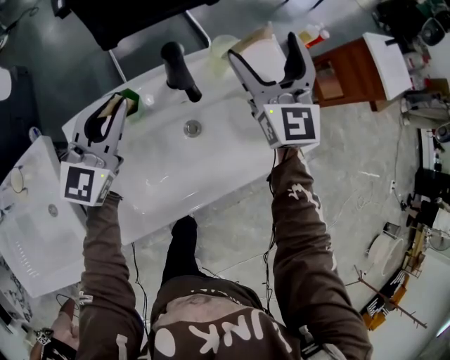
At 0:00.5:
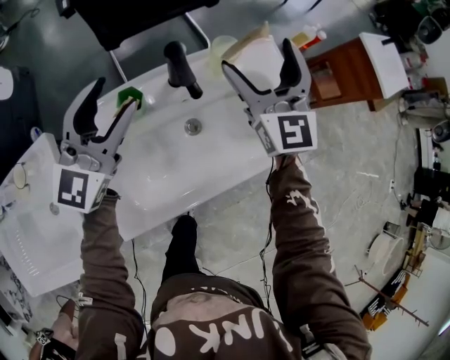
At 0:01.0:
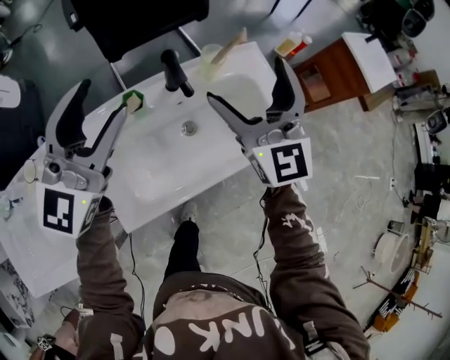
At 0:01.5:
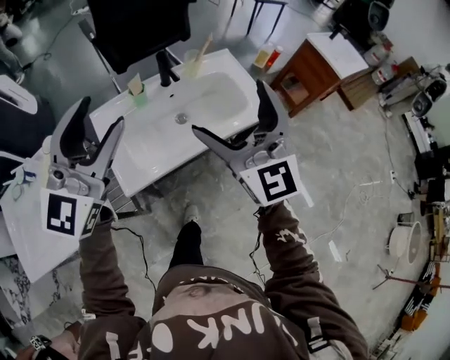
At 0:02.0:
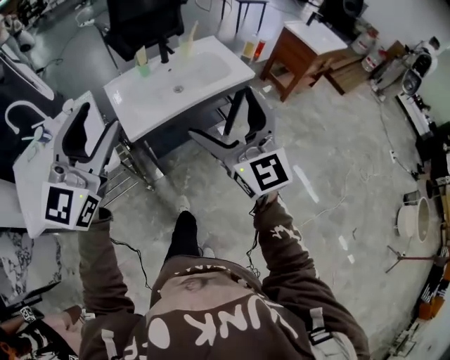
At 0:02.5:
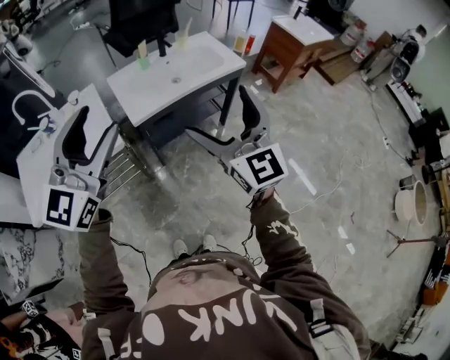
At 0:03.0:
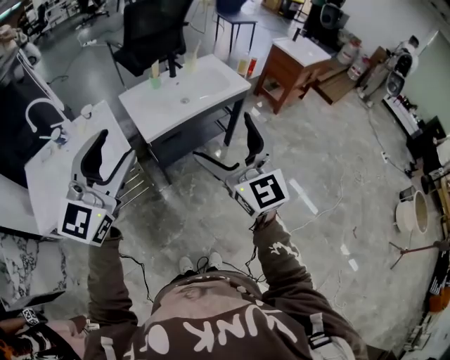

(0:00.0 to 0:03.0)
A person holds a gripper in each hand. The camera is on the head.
0:00.0 - 0:01.5: The two grippers go approximately 40 cm backward and upward. The left gripper opens its fingers.
0:01.5 - 0:03.0: Both grippers are carried backward, roughly 40 cm.

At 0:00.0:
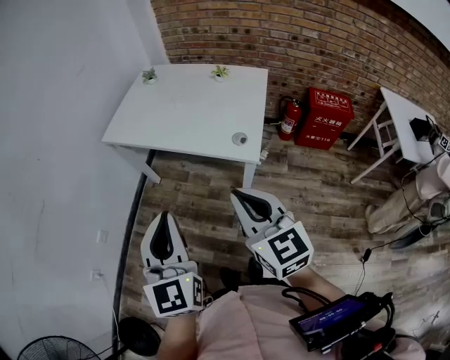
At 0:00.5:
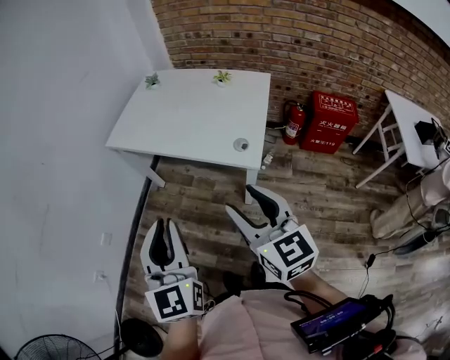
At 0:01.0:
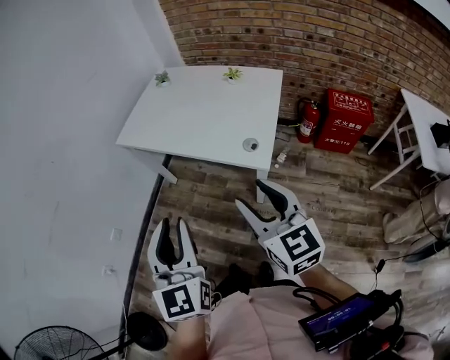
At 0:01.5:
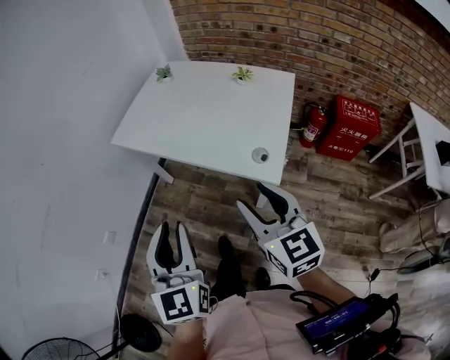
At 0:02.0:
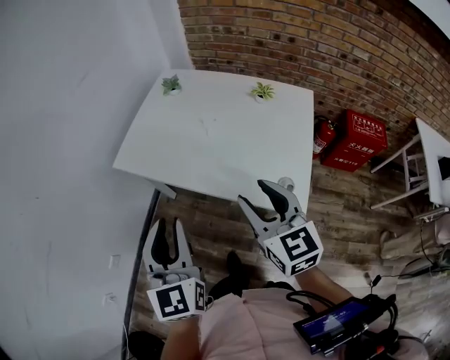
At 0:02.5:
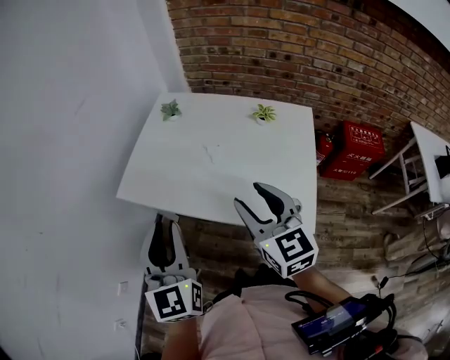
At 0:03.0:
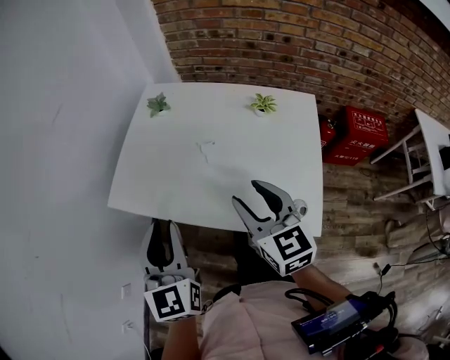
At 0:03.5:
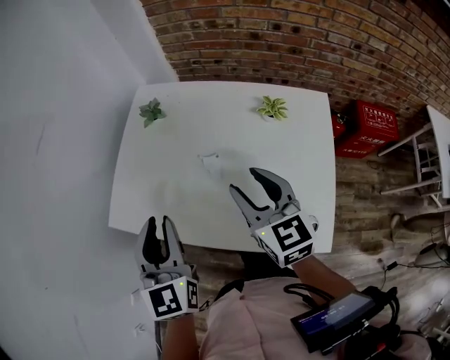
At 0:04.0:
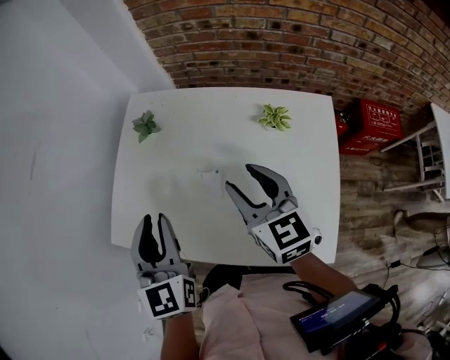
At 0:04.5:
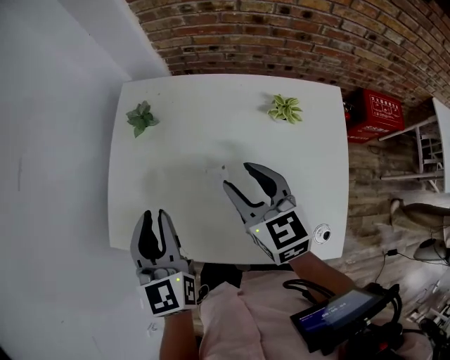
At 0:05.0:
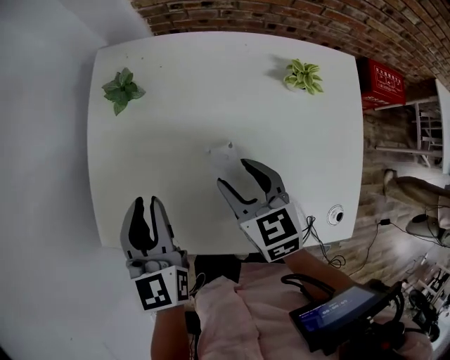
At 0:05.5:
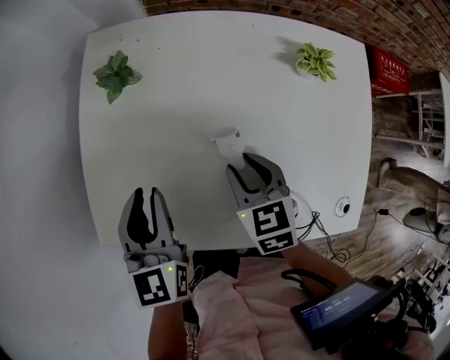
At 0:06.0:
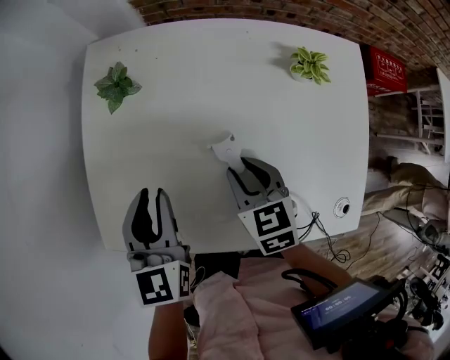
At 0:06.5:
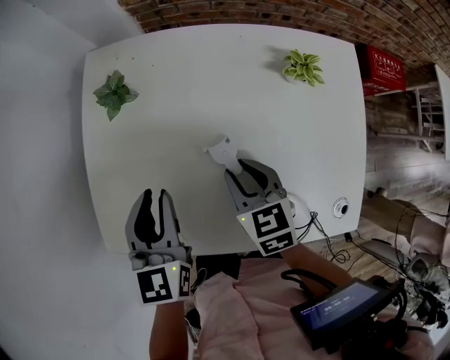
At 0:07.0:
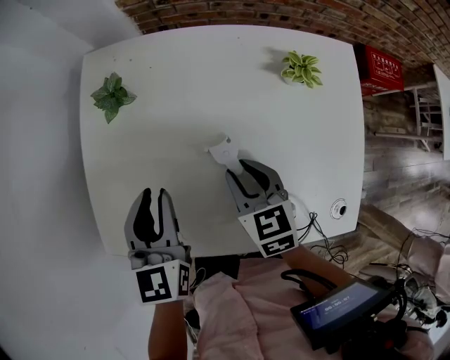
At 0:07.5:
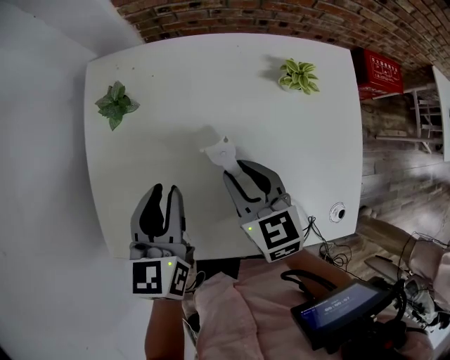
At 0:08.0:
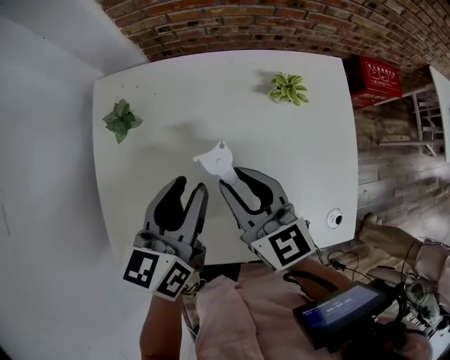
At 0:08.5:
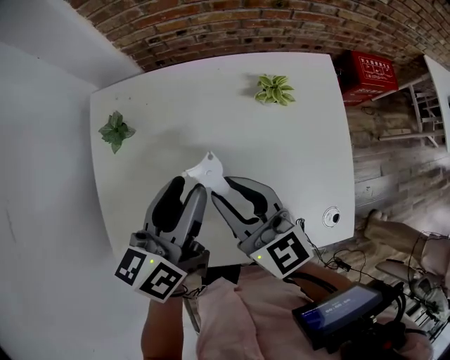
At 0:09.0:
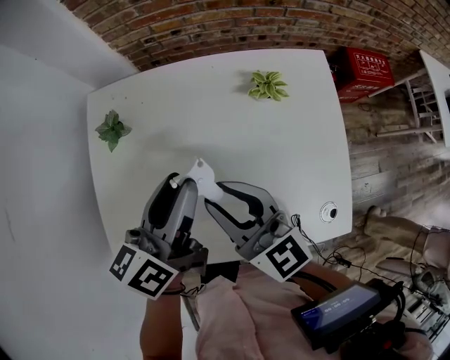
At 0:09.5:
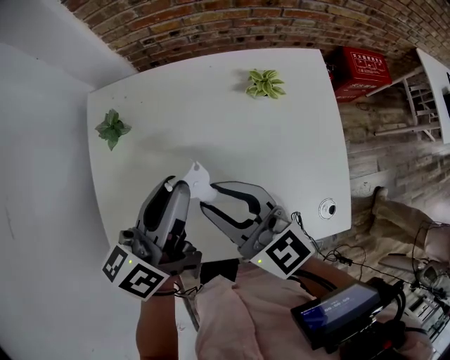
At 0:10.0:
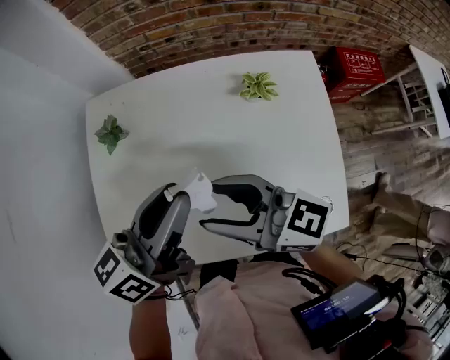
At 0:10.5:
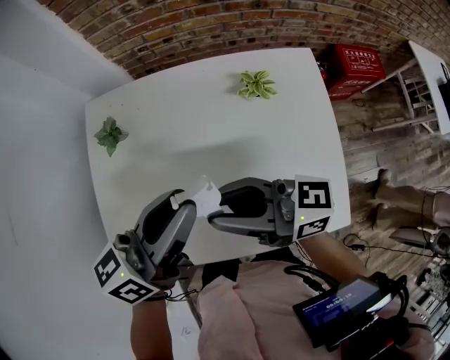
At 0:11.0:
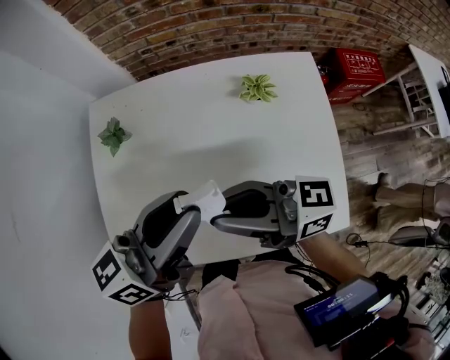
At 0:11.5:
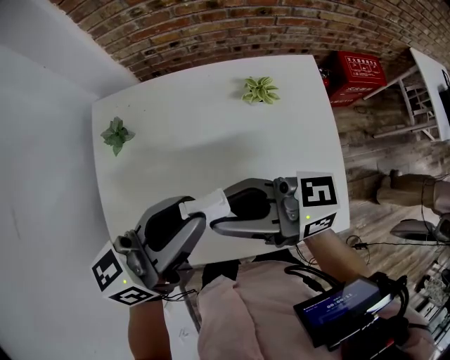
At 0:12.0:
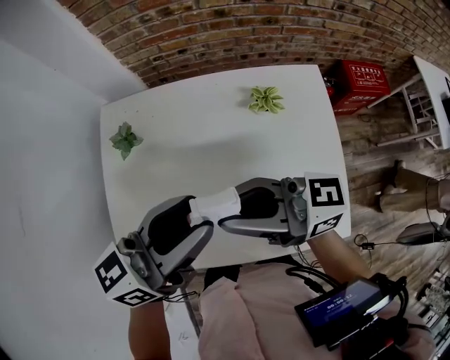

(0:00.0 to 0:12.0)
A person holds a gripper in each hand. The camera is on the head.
0:00.0 - 0:02.0: The grippers both shift forward by approximately 25 cm. The right gripper opens; the left gripper opens.
0:02.0 - 0:04.0: The two grippers go about 30 cm forward.
0:04.0 - 0:06.0: The right gripper heads downward, covering about 15 cm, and turns by some 30 degrees. Meanwhile the left gripper moves downward and forward, approximately 15 cm, and turns by about 20 degrees.
0:06.0 - 0:08.0: The left gripper is displaced to the right by about 10 cm, and rotates about 30 degrees; the right gripper shifts about 10 cm upward, and swivels roughly 30 degrees.
0:08.0 - 0:10.0: The left gripper moves upward, about 10 cm, and rotates roughly 20 degrees. Meanwhile the right gripper heads upward and backward, covering approximately 10 cm, and turns by approximately 40 degrees.
0:10.0 - 0:12.0: The right gripper rotates about 20 degrees, and closes.

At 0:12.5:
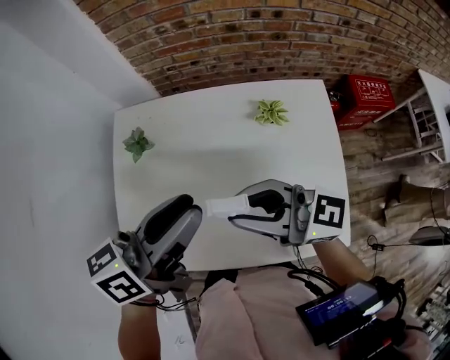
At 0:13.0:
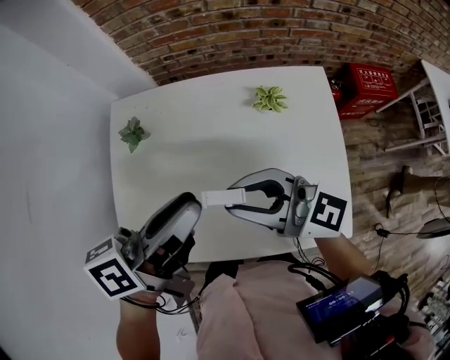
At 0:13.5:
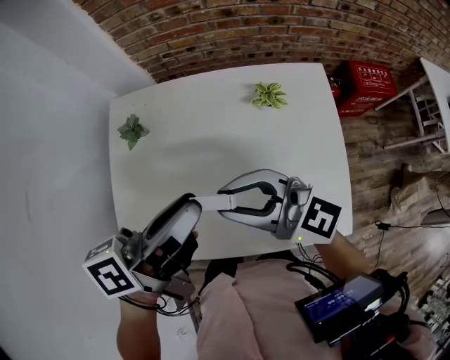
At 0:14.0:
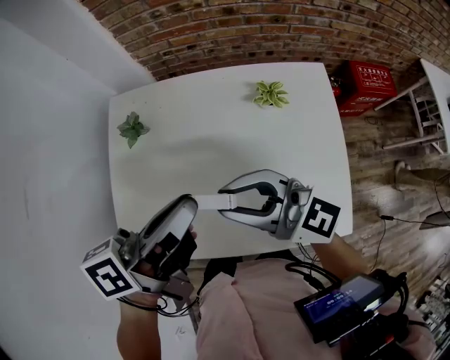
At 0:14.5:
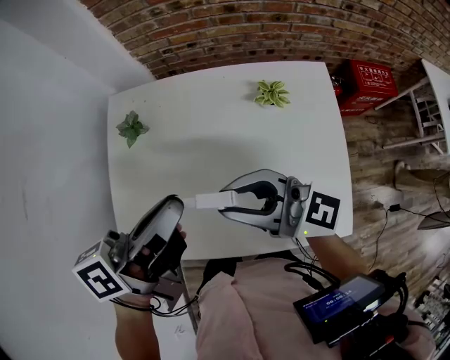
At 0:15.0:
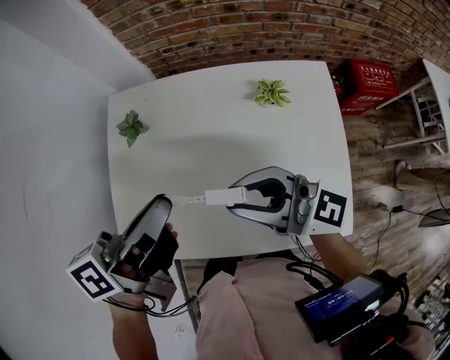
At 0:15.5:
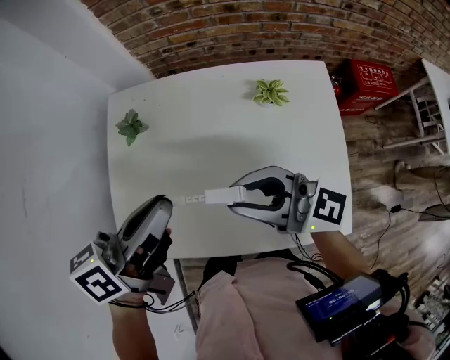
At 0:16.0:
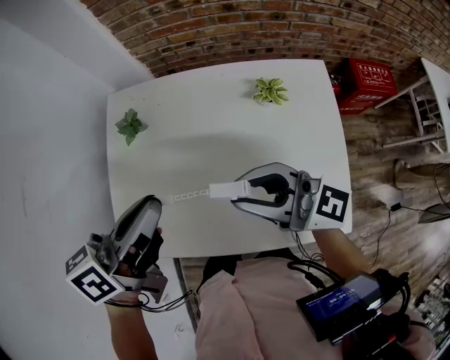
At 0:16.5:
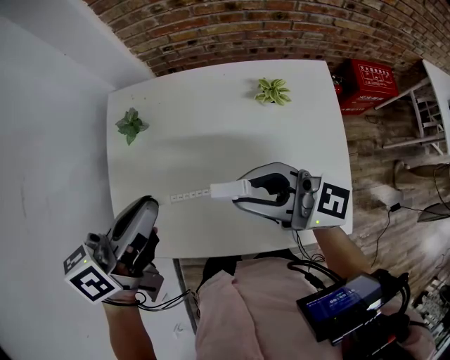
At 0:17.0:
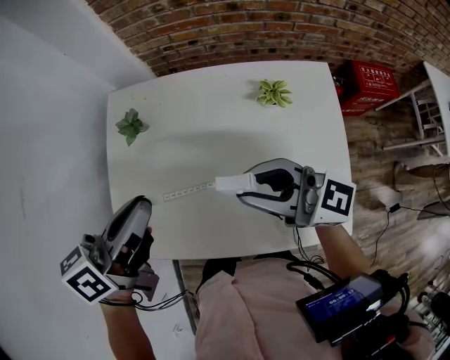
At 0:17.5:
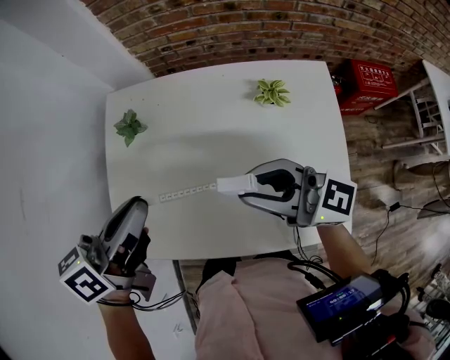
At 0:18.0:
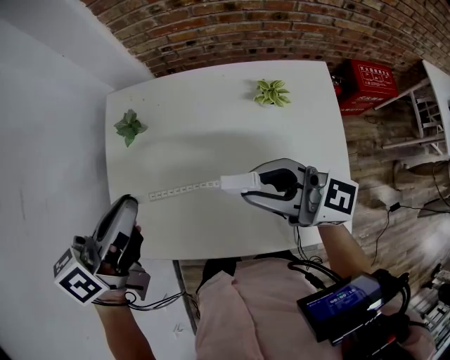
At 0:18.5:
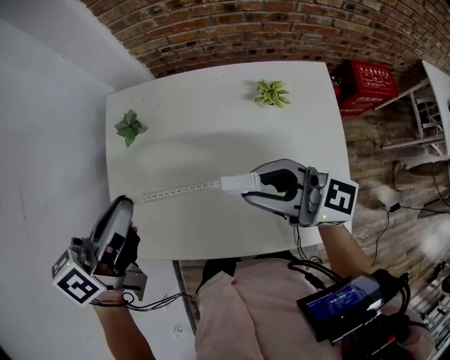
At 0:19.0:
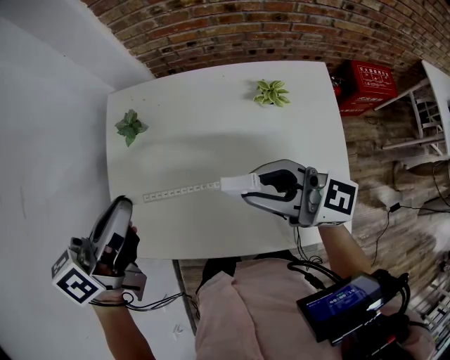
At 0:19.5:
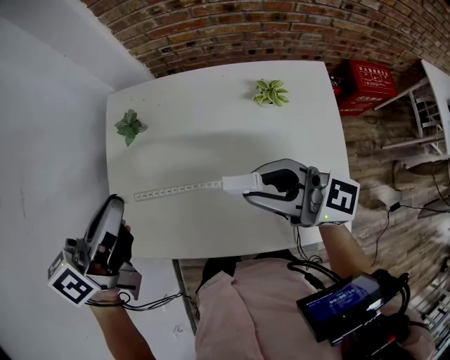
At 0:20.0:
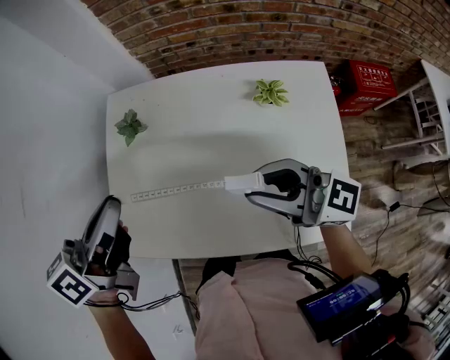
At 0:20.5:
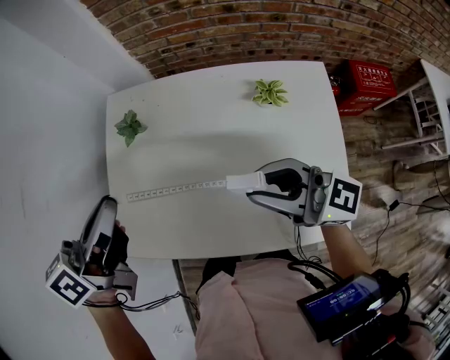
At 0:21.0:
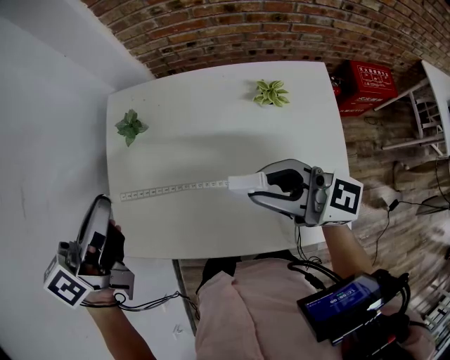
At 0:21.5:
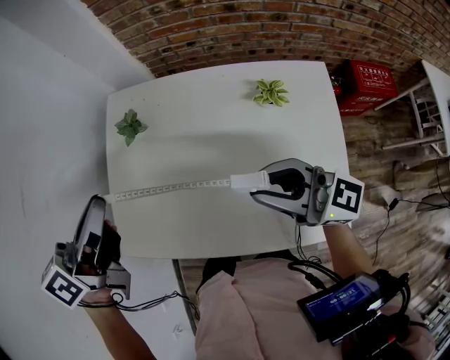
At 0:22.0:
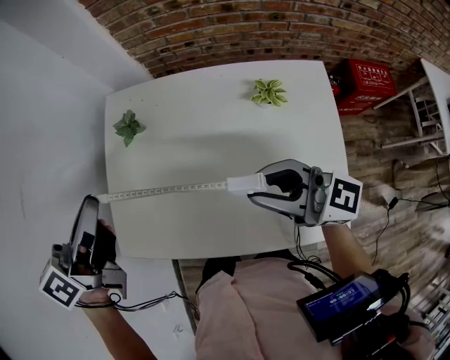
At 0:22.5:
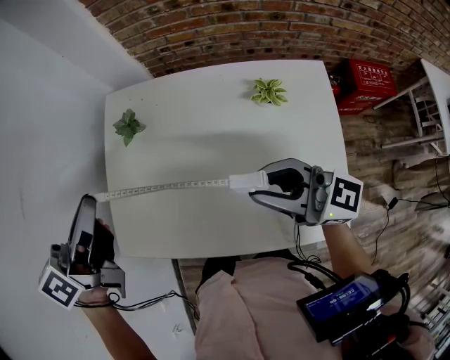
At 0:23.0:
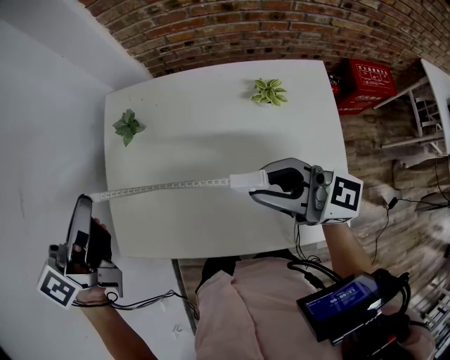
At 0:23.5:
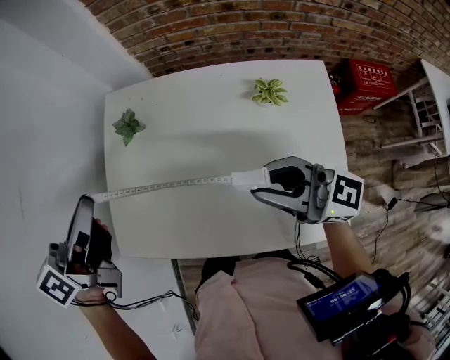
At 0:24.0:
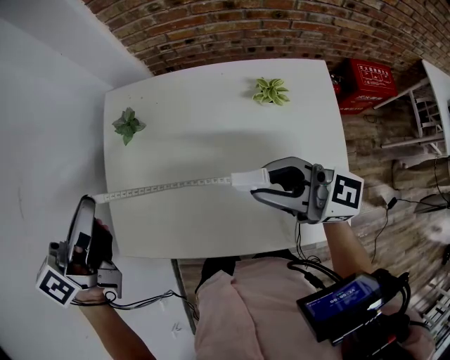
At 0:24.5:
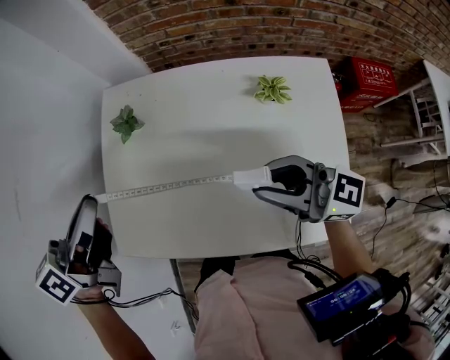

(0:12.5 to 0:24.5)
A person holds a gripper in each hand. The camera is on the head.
0:12.5 - 0:14.5: The left gripper closes.
0:14.5 - 0:16.5: The left gripper ends up approximately 5 cm from where it was.
0:16.5 - 0:18.5: The grippers make only small movements.
0:18.5 - 0:22.5: The grippers move only a little.
0:22.5 - 0:24.5: Both grippers stay put.
